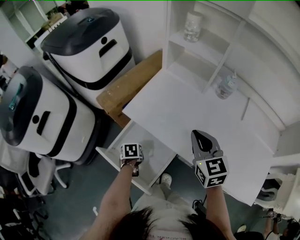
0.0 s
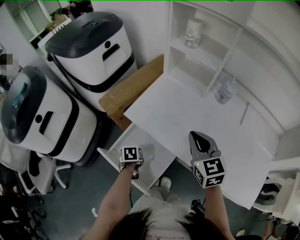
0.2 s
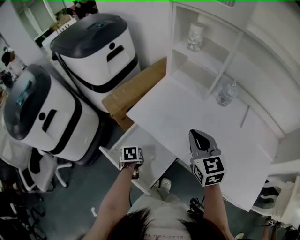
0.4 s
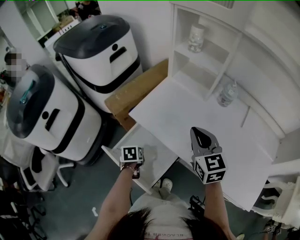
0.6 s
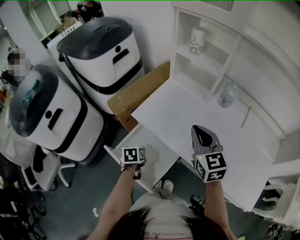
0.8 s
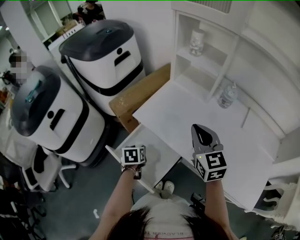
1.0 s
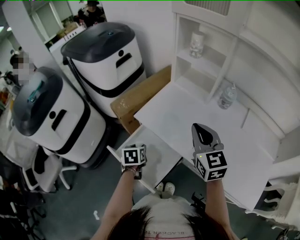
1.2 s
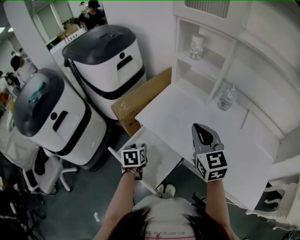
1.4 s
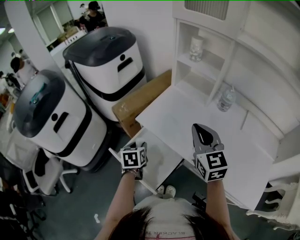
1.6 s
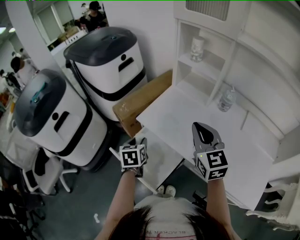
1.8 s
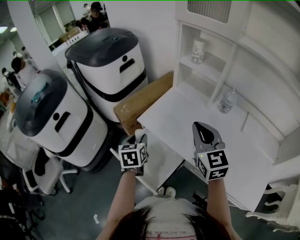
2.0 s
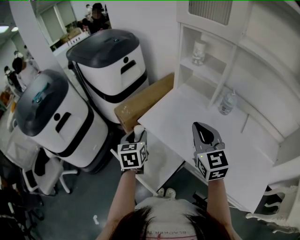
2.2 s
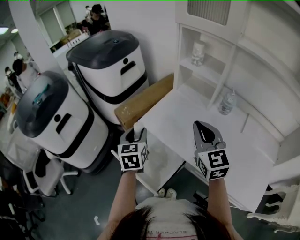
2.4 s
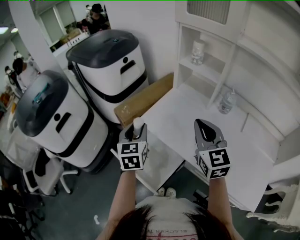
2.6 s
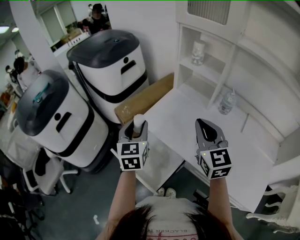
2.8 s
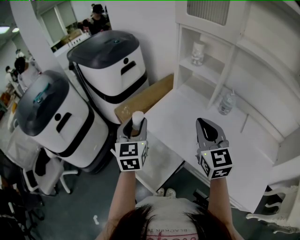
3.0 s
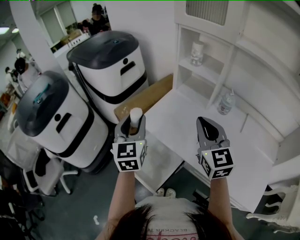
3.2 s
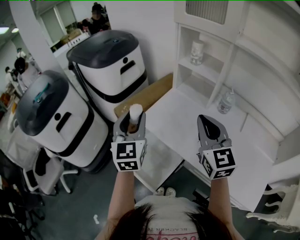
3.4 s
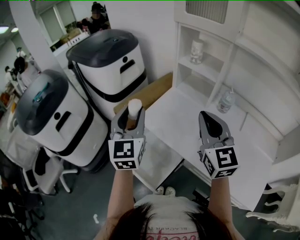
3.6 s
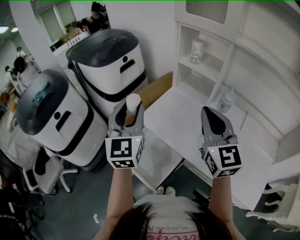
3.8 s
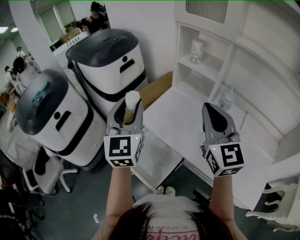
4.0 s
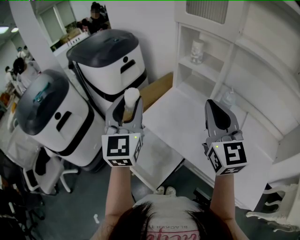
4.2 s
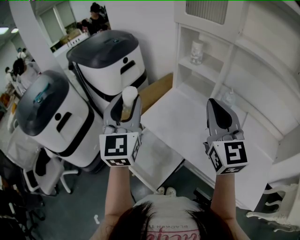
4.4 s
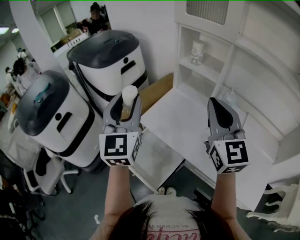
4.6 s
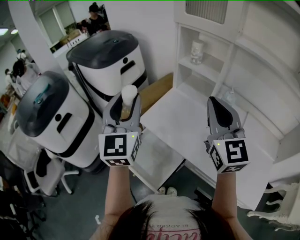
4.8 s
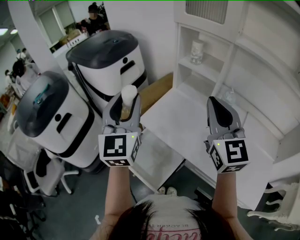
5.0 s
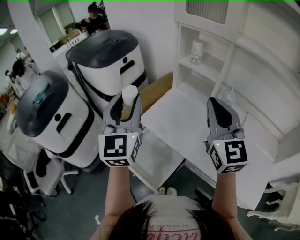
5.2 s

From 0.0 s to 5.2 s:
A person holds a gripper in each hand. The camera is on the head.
From 0.0 s to 1.8 s: The right gripper shifts some 10 cm upward. Meanwhile the left gripper travels upward by roughly 20 cm, and angles its fingers upward, by approximately 30 degrees.
From 1.8 s to 3.4 s: The right gripper is displaced upward by roughly 5 cm. The left gripper heads upward, covering some 20 cm, and points its fingers about 40 degrees further upward.
From 3.4 s to 5.2 s: Both grippers travel together upward, approximately 10 cm.

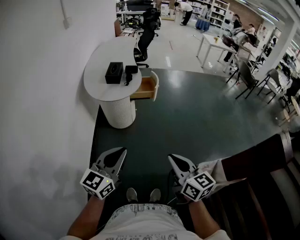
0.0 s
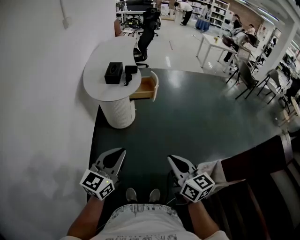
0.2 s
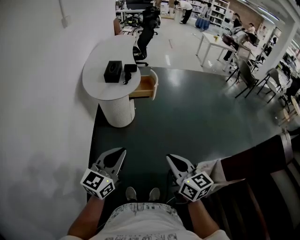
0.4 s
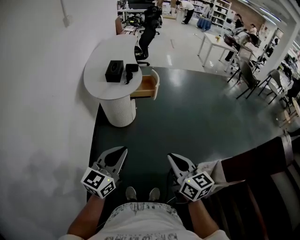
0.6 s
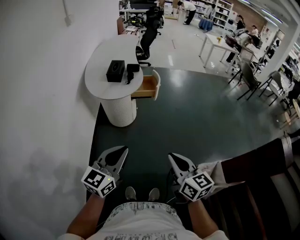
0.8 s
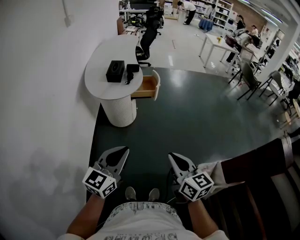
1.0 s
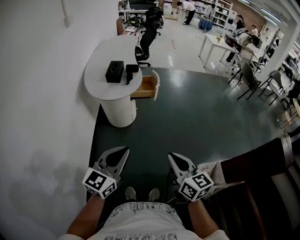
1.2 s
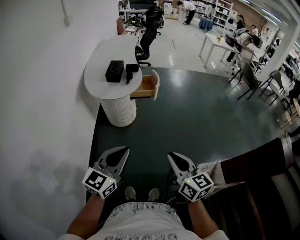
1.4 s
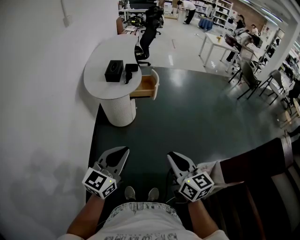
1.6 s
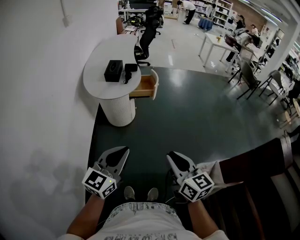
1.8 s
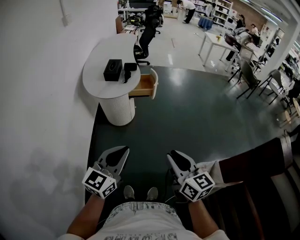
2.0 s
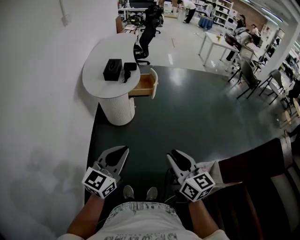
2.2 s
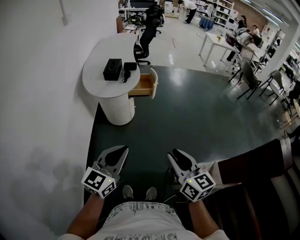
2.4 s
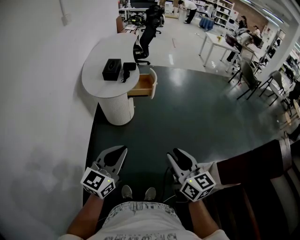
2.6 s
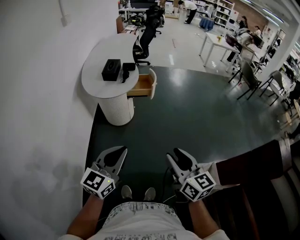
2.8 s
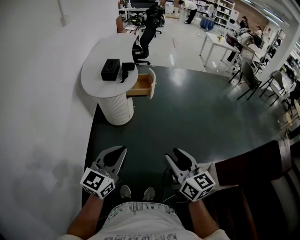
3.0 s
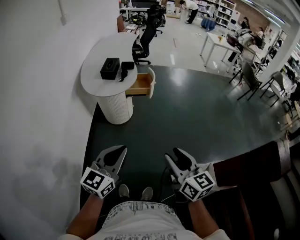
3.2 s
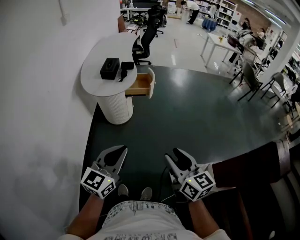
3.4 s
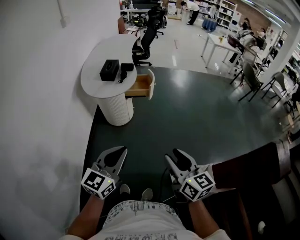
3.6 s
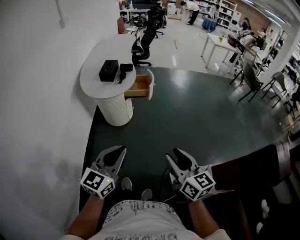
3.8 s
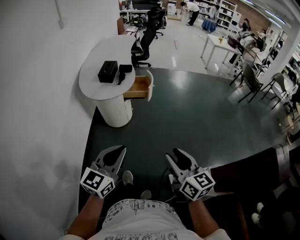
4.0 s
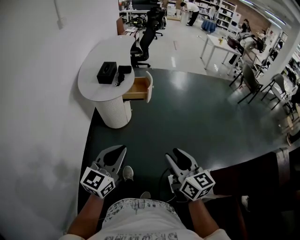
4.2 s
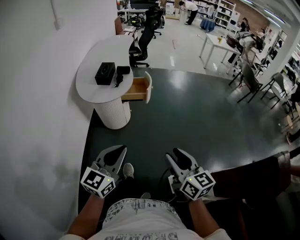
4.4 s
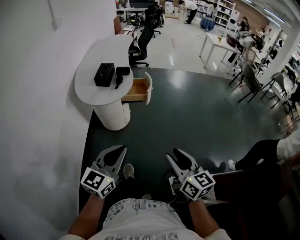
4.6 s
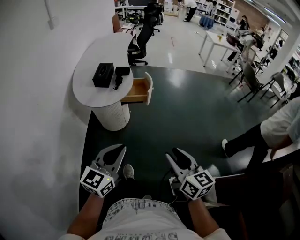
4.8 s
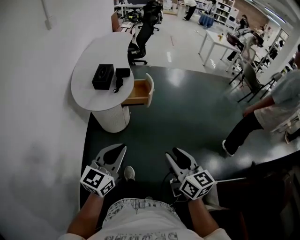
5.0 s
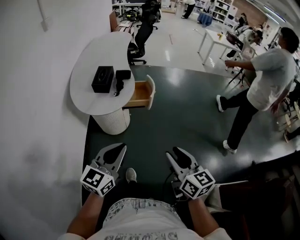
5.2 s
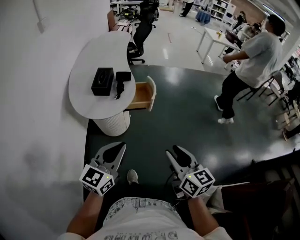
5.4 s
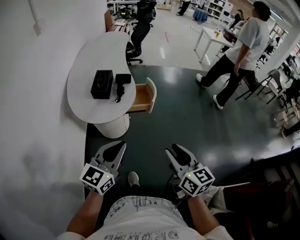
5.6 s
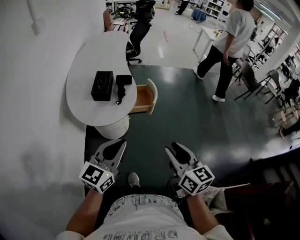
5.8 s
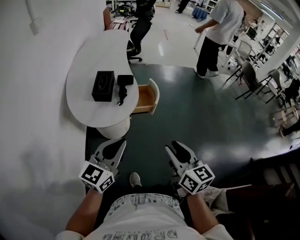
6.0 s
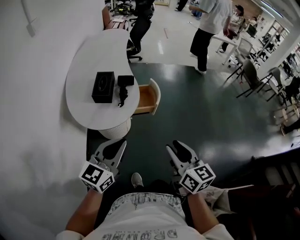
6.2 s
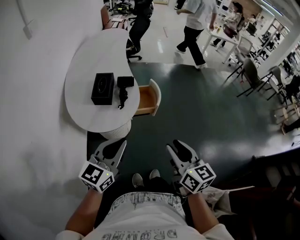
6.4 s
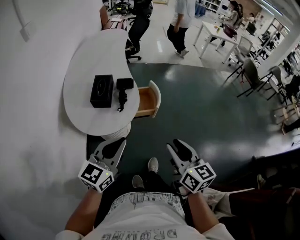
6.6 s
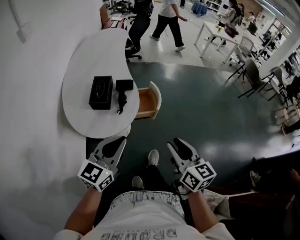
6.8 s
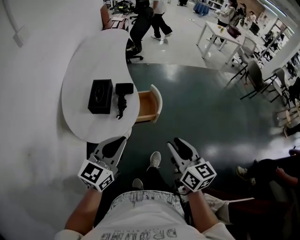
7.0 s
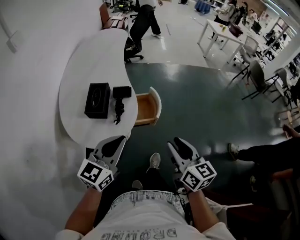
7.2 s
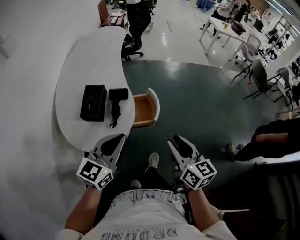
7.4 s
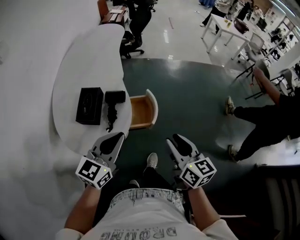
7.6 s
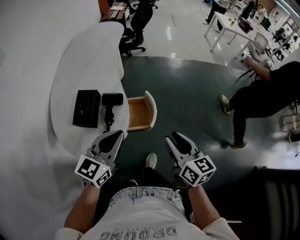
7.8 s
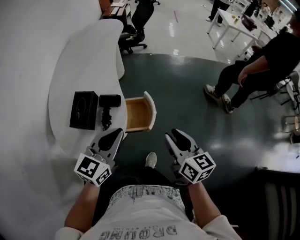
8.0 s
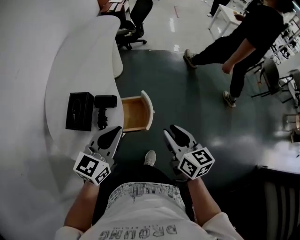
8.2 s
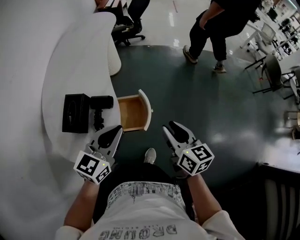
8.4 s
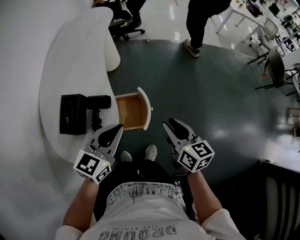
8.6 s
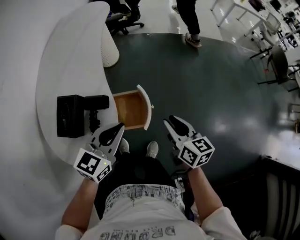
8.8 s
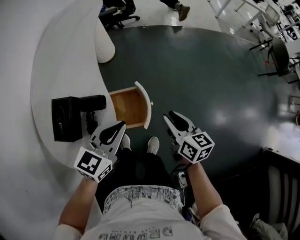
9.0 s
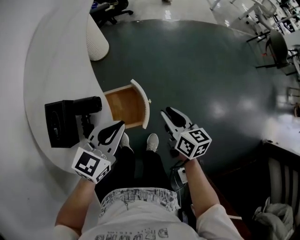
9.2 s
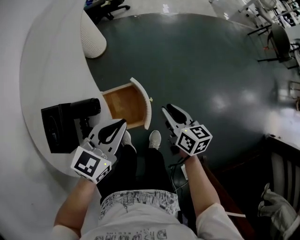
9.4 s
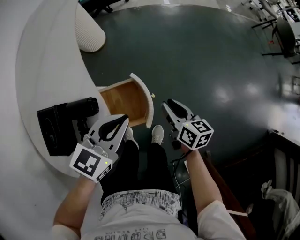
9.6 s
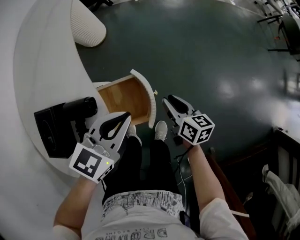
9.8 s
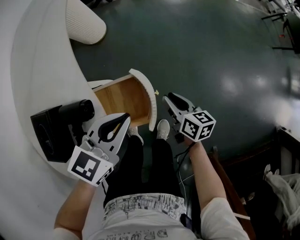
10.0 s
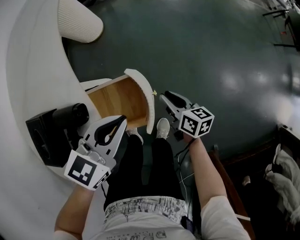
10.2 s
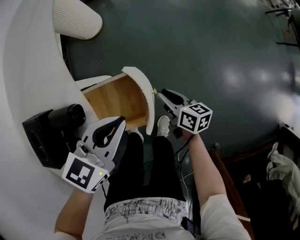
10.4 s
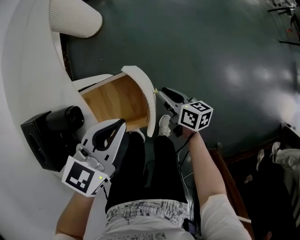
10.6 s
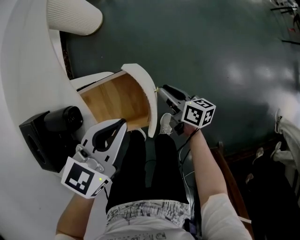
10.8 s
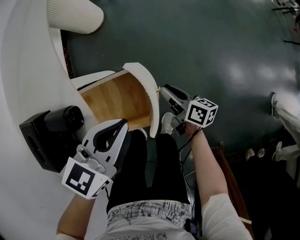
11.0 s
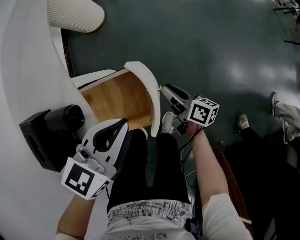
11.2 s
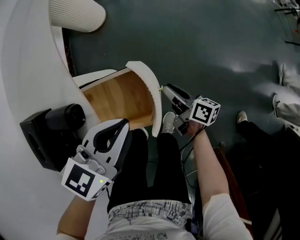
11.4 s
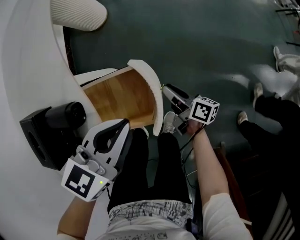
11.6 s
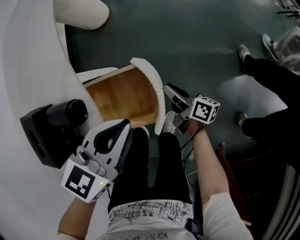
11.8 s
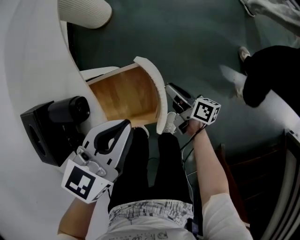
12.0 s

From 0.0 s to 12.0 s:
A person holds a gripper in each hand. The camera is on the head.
From 0.0 s to 1.6 s: The grippers stay close to where they were, moving slightly.
From 1.6 s to 3.0 s: The right gripper opens.
From 3.0 s to 4.4 s: The left gripper moves forward, roughly 5 cm. Meanwhile the right gripper goes about 5 cm forward and to the right.
From 4.4 s to 6.0 s: The grippers both shift forward and to the left by about 30 cm.
From 6.0 s to 7.6 s: Both grippers travel together forward, some 25 cm.
From 7.6 s to 9.0 s: The right gripper travels forward and downward by about 25 cm, while the left gripper is displaced forward, downward and to the right by some 20 cm.
From 9.0 s to 10.4 s: The right gripper shifts approximately 25 cm downward, while the left gripper travels downward and forward by approximately 15 cm.
From 10.4 s to 12.0 s: The right gripper turns by some 20 degrees.

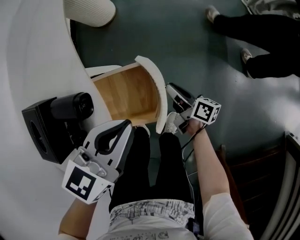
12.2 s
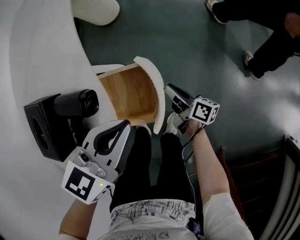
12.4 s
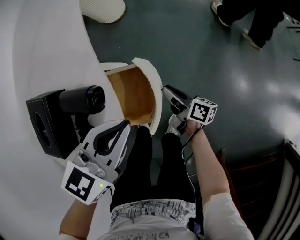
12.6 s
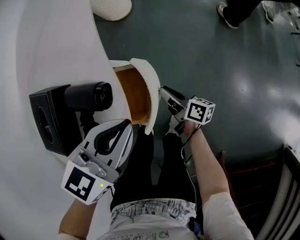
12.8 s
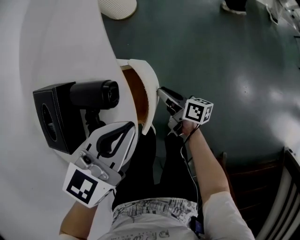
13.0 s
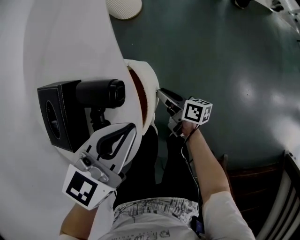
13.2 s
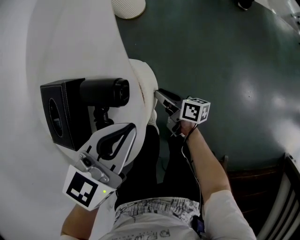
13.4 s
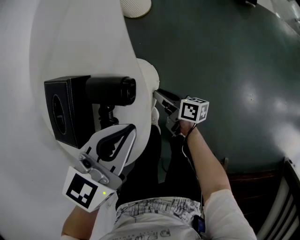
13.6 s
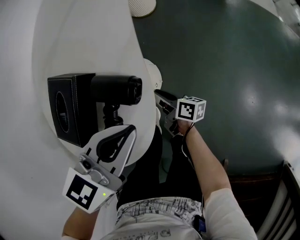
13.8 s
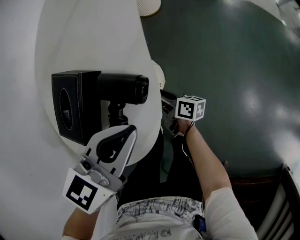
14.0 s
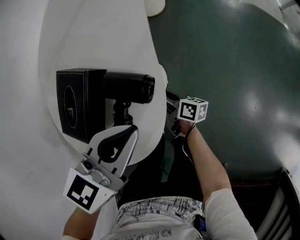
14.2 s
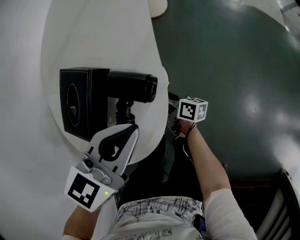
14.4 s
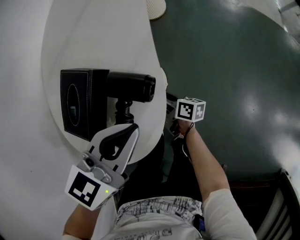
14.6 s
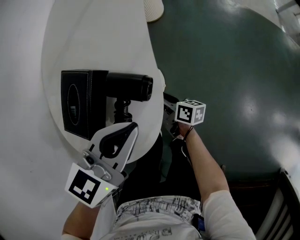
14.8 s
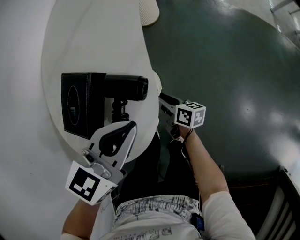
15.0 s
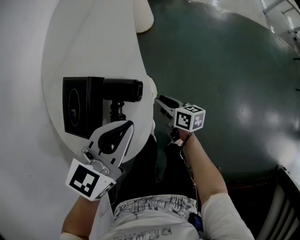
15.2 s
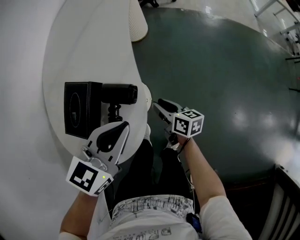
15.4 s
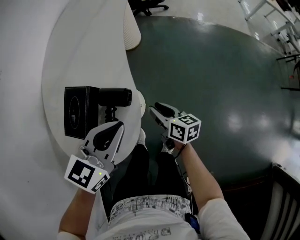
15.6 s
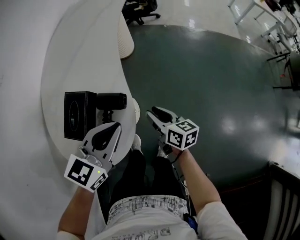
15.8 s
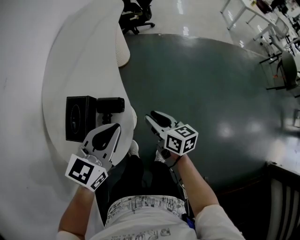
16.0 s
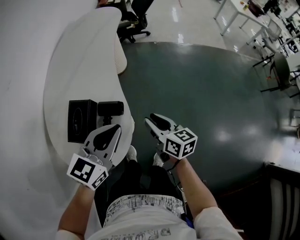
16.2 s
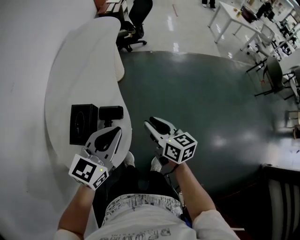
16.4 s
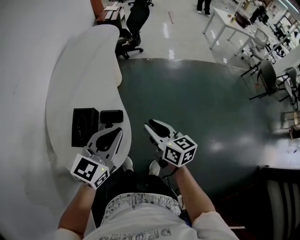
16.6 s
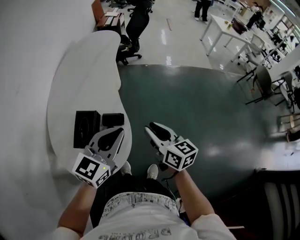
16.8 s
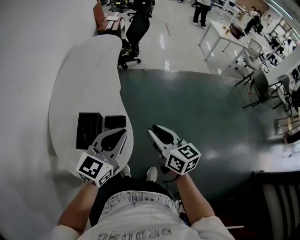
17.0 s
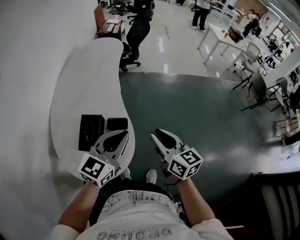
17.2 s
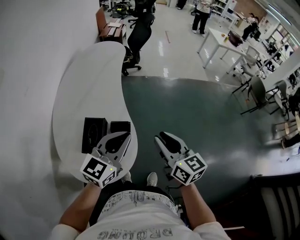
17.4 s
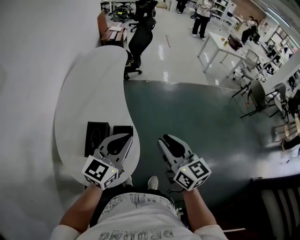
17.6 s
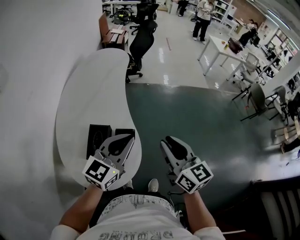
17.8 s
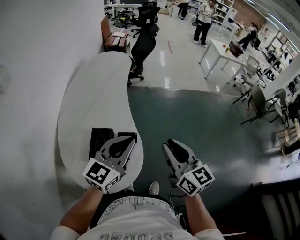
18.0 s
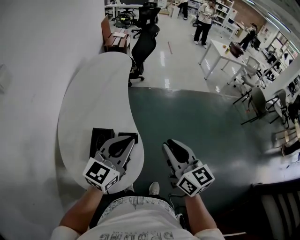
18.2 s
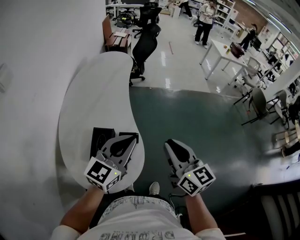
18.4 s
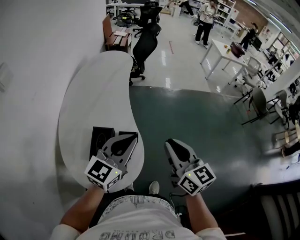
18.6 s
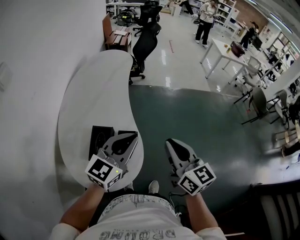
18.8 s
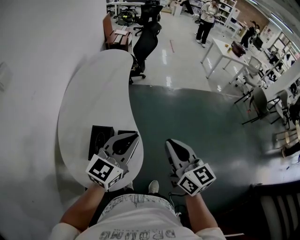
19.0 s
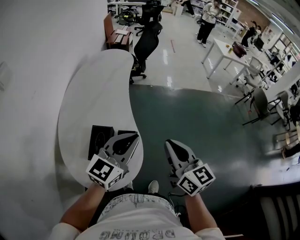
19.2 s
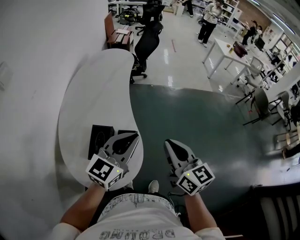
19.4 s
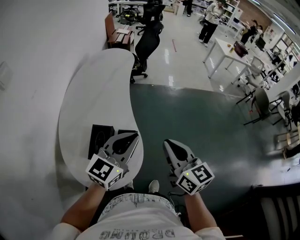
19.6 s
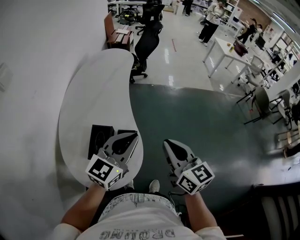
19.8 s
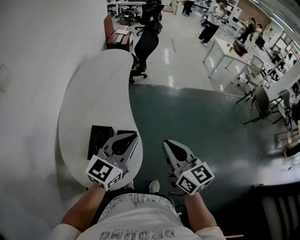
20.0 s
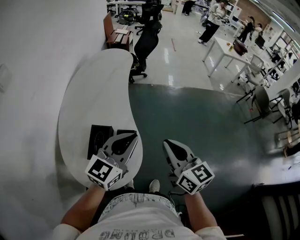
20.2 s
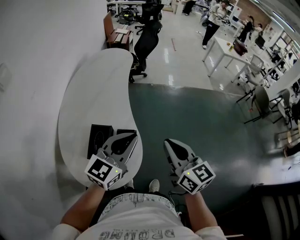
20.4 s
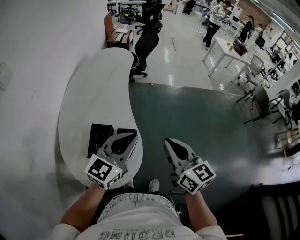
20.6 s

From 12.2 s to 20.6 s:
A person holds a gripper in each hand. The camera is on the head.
From 12.2 s to 13.6 s: The right gripper shifts approximately 20 cm to the left, and swivels roughly 20 degrees. Meanwhile the left gripper is displaced to the left by roughly 10 cm.
From 13.6 s to 15.0 s: The grippers make only small movements.
From 15.0 s to 16.4 s: The right gripper heads upward, covering some 30 cm, and turns by about 30 degrees, while the left gripper moves upward, some 15 cm.
From 16.4 s to 17.8 s: The left gripper is displaced upward by approximately 10 cm, while the right gripper travels upward by approximately 20 cm, and swivels roughly 20 degrees.
From 17.8 s to 19.2 s: The right gripper closes.
From 19.2 s to 20.6 s: The two grippers keep their place.
